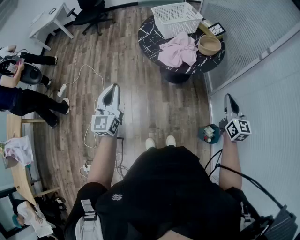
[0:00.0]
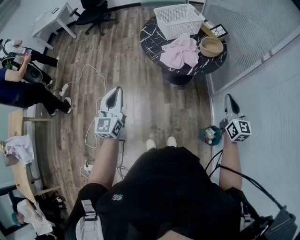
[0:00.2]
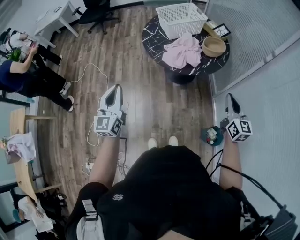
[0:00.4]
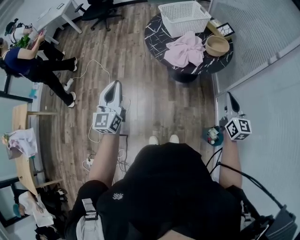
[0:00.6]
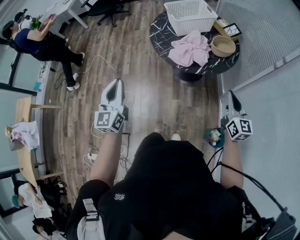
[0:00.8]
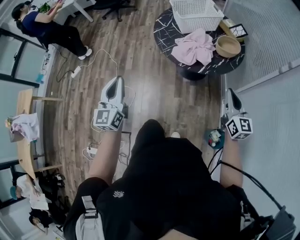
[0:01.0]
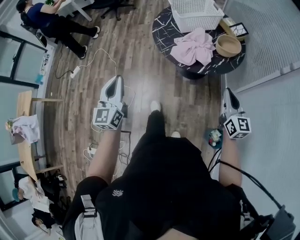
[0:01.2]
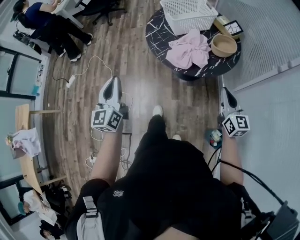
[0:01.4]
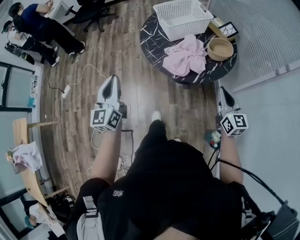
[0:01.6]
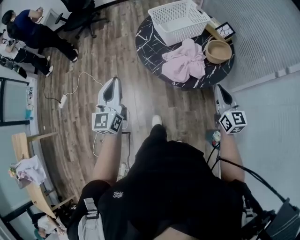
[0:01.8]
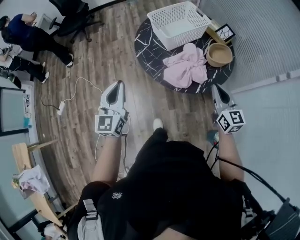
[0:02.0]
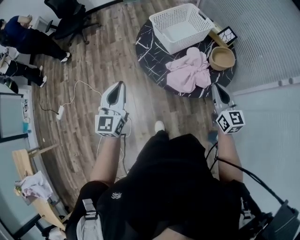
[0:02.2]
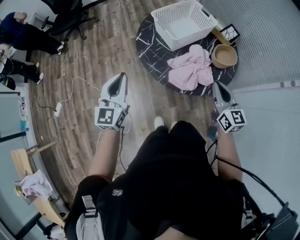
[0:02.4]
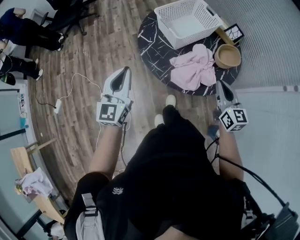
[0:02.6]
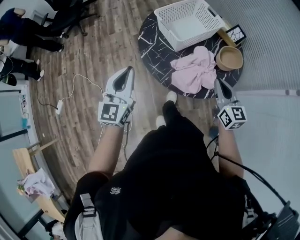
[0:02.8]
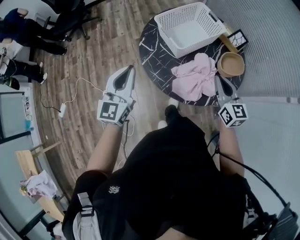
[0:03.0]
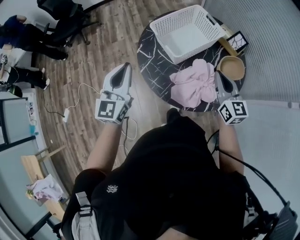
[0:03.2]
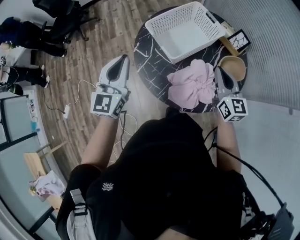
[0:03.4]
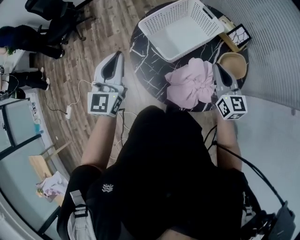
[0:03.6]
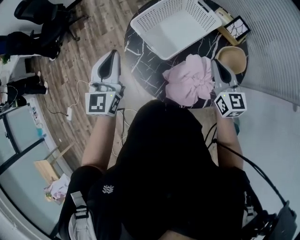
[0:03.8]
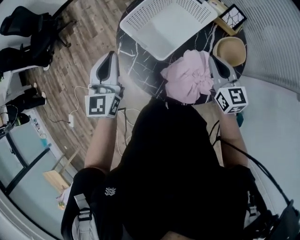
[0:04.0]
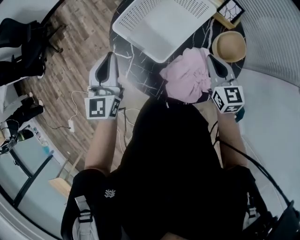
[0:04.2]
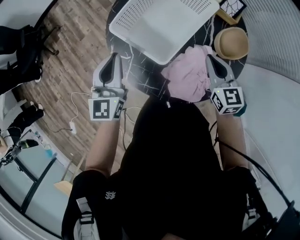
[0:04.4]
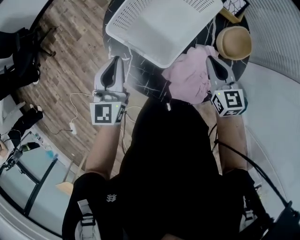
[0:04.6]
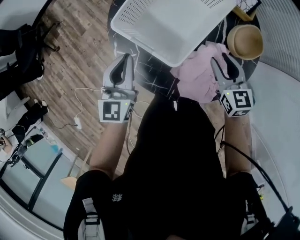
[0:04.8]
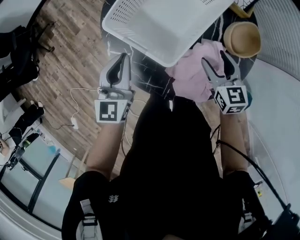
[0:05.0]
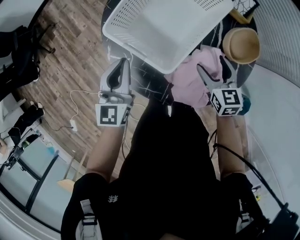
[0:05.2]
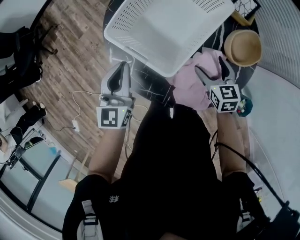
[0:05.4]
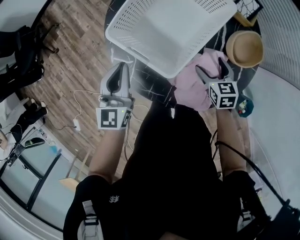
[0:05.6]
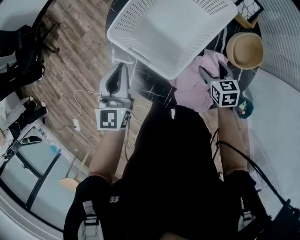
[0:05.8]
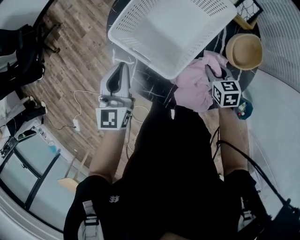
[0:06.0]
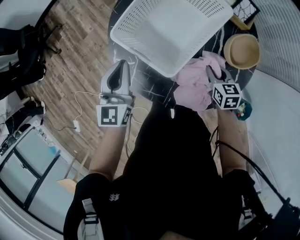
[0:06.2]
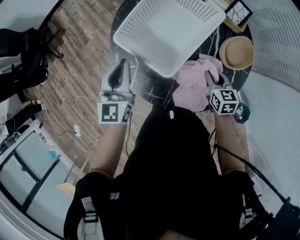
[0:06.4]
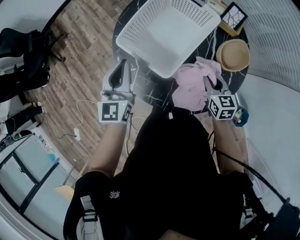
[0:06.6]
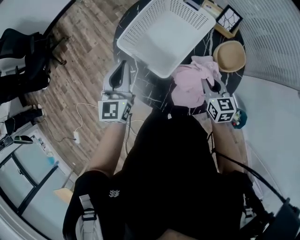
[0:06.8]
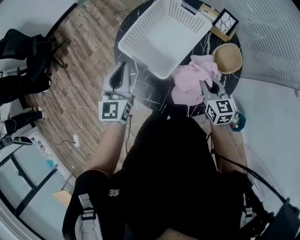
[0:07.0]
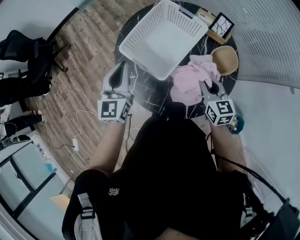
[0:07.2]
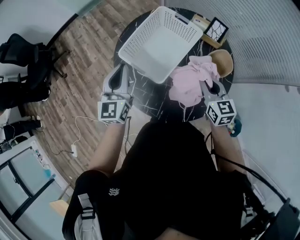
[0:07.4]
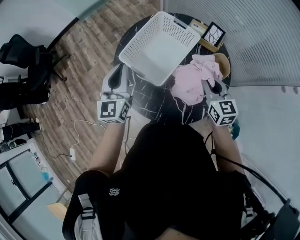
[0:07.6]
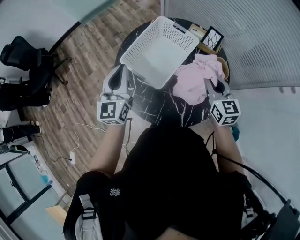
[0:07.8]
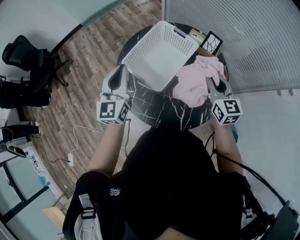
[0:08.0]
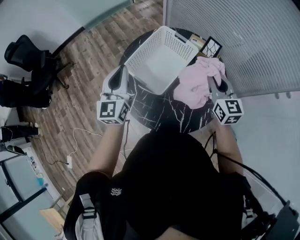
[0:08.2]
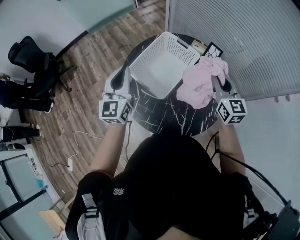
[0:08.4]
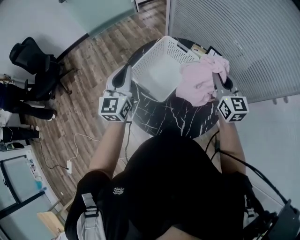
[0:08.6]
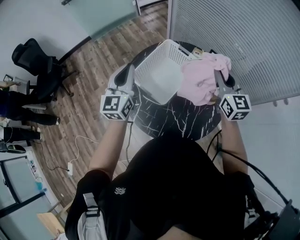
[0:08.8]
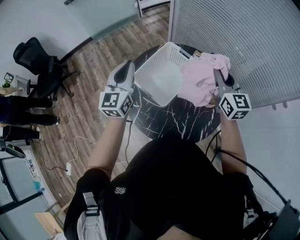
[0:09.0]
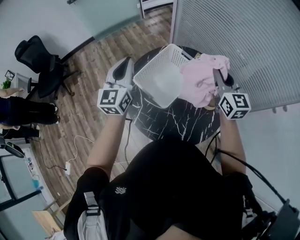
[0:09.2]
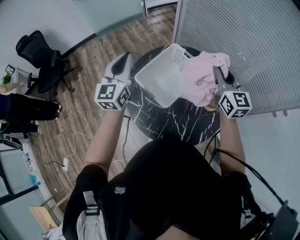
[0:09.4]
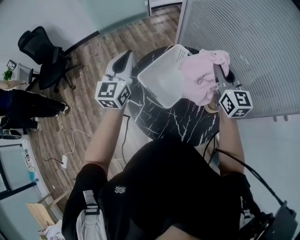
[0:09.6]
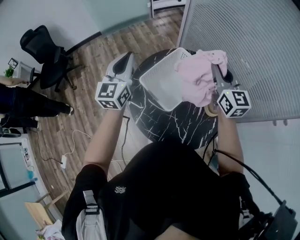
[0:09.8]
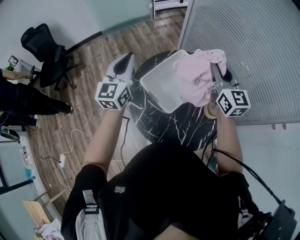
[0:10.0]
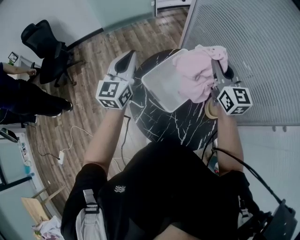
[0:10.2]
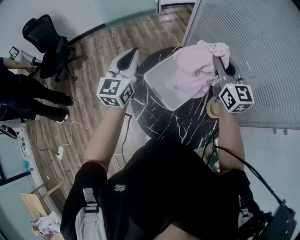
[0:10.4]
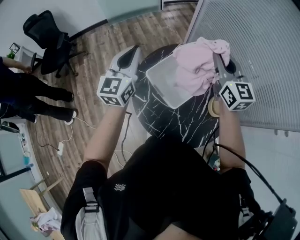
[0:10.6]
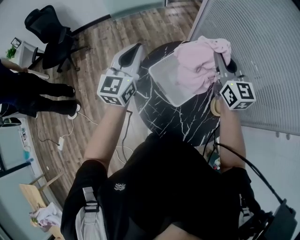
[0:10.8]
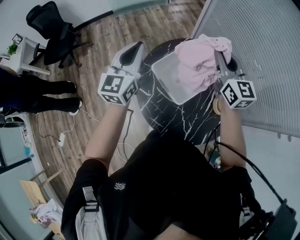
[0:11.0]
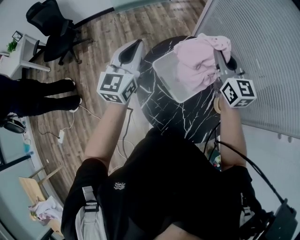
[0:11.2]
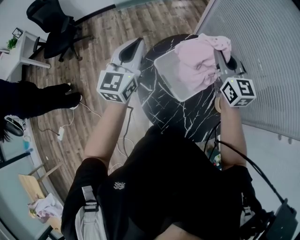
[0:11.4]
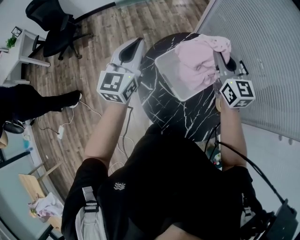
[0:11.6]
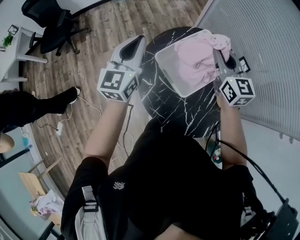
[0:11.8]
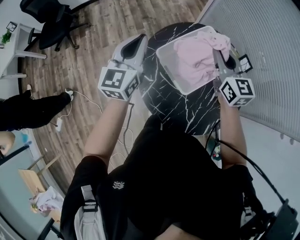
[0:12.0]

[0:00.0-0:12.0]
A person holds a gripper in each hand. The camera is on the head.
0:00.0 to 0:01.6: Both grippers move forward, about 15 cm.
0:01.6 to 0:03.0: The left gripper goes some 30 cm forward, and rotates about 20 degrees, while the right gripper shifts approximately 25 cm forward and to the left.
0:03.0 to 0:04.4: Both grippers move forward and downward, some 25 cm.
0:04.4 to 0:06.0: The left gripper heads downward, covering roughly 5 cm. Meanwhile the right gripper is displaced downward by some 15 cm, turns by approximately 30 degrees, and opens and closes again.
0:06.0 to 0:07.6: The right gripper is displaced upward by some 25 cm, and swivels approximately 30 degrees, while the left gripper shifts approximately 15 cm upward.
0:07.6 to 0:09.0: The left gripper heads upward, covering some 10 cm, while the right gripper shifts roughly 15 cm upward and forward.
0:09.0 to 0:10.4: The left gripper is displaced to the left by approximately 5 cm. The right gripper shifts some 15 cm to the left, upward and forward.
0:10.4 to 0:12.0: The right gripper shifts about 15 cm downward and to the left. Meanwhile the left gripper moves downward, some 5 cm.

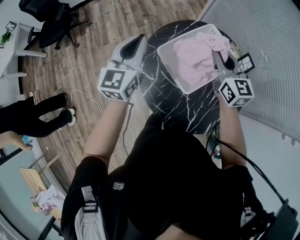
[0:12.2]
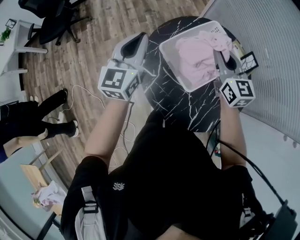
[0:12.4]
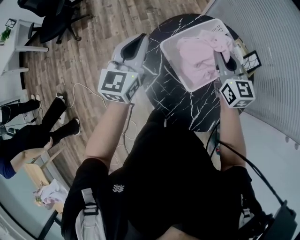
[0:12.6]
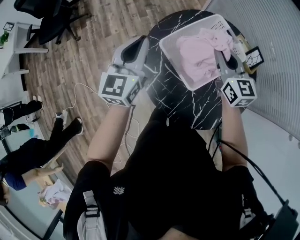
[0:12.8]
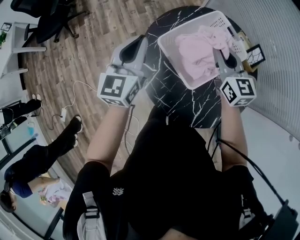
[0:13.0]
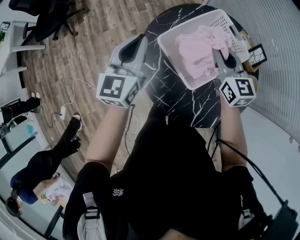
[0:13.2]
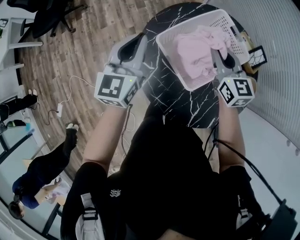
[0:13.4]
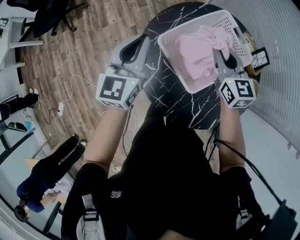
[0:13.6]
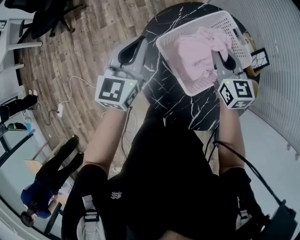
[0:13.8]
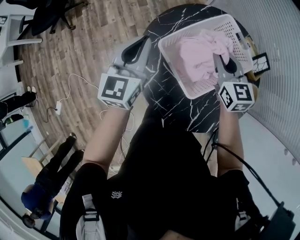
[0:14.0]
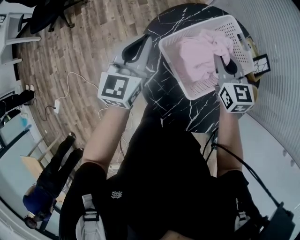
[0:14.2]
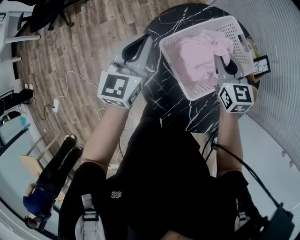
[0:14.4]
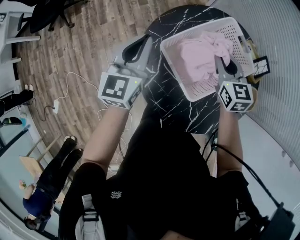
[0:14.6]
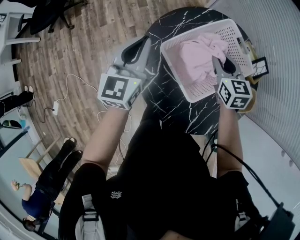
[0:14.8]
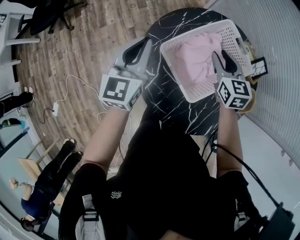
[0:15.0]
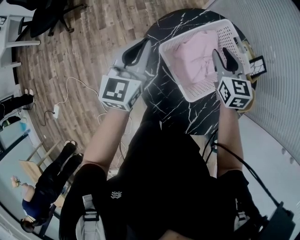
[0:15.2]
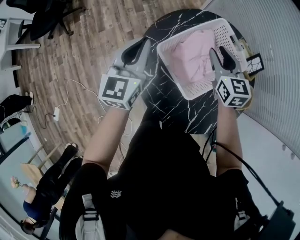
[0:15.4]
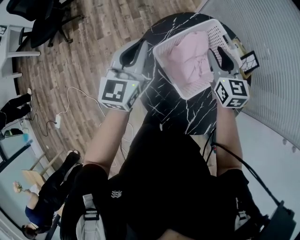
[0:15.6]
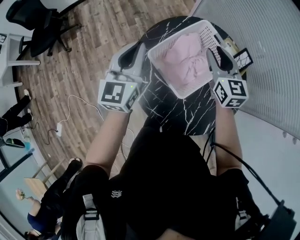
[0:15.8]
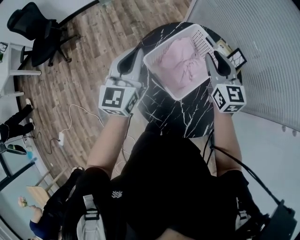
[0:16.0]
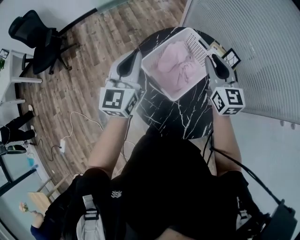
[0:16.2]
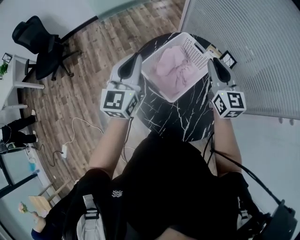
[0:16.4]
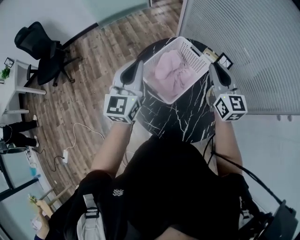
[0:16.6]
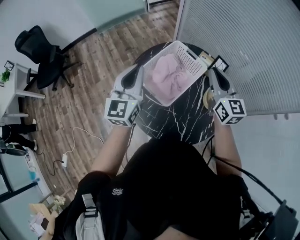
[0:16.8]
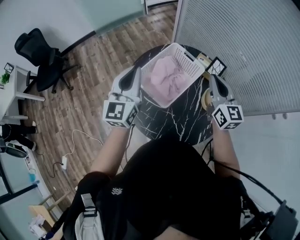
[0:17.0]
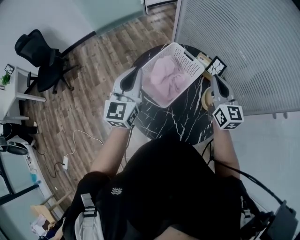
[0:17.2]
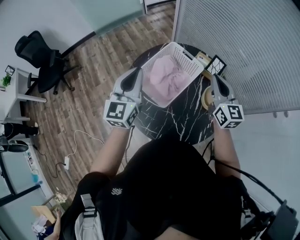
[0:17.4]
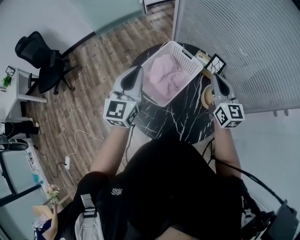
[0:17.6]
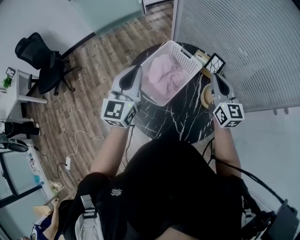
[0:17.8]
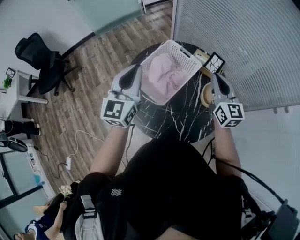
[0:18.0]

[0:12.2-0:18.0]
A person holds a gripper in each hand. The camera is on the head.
0:12.2 to 0:13.6: Both grippers travel together downward, some 10 cm.
0:13.6 to 0:15.0: The right gripper ends up about 5 cm from where it was.
0:15.0 to 0:16.6: The two grippers go roughly 20 cm upward, to the right and backward. The right gripper swivels roughly 30 degrees.
0:16.6 to 0:18.0: The grippers both shift to the right by approximately 5 cm.

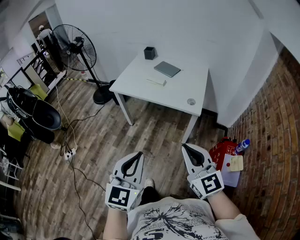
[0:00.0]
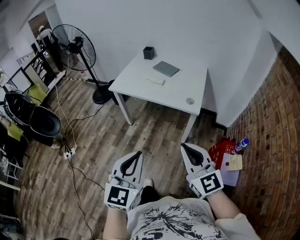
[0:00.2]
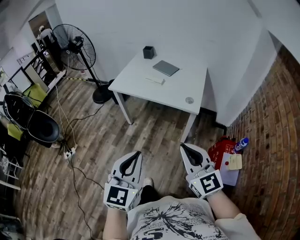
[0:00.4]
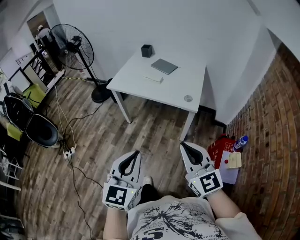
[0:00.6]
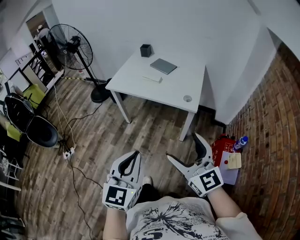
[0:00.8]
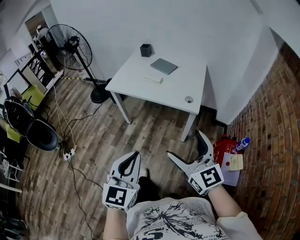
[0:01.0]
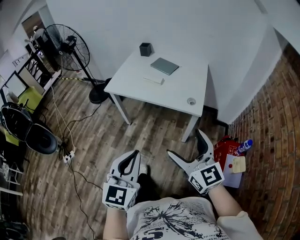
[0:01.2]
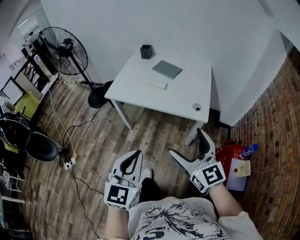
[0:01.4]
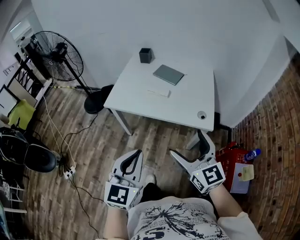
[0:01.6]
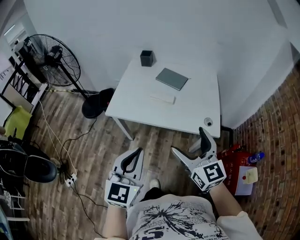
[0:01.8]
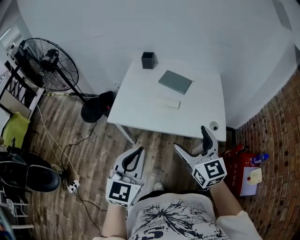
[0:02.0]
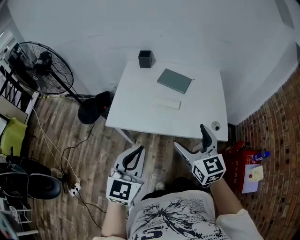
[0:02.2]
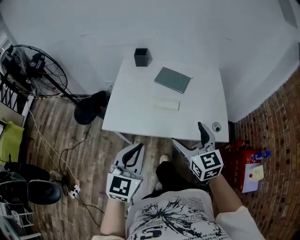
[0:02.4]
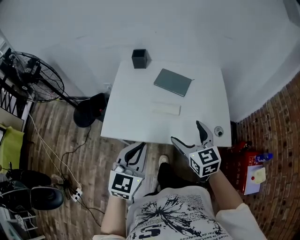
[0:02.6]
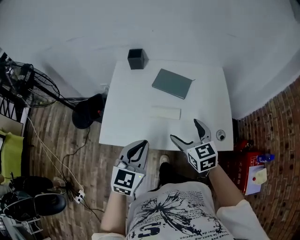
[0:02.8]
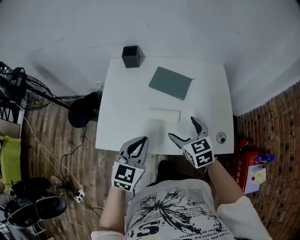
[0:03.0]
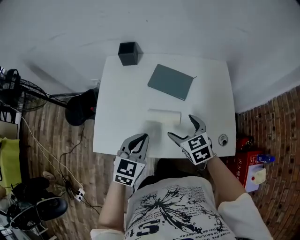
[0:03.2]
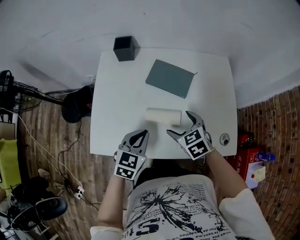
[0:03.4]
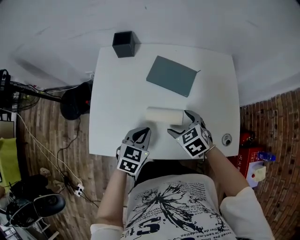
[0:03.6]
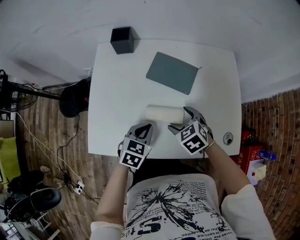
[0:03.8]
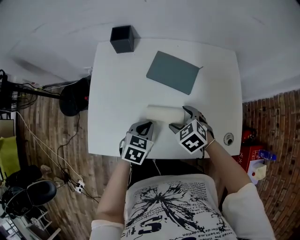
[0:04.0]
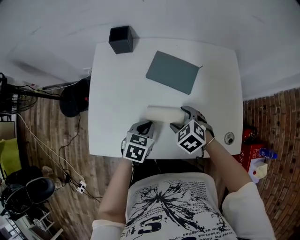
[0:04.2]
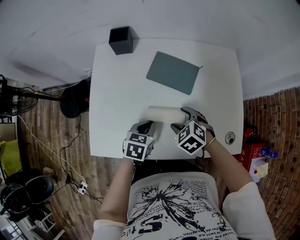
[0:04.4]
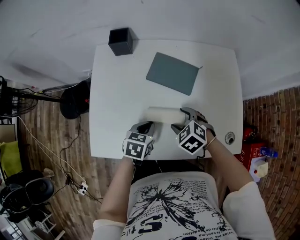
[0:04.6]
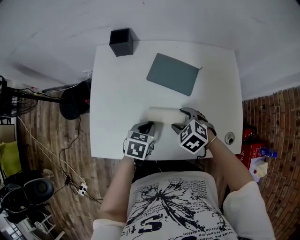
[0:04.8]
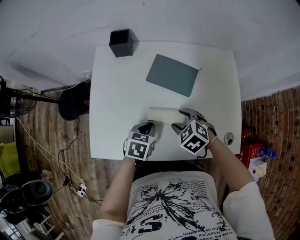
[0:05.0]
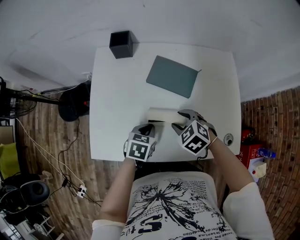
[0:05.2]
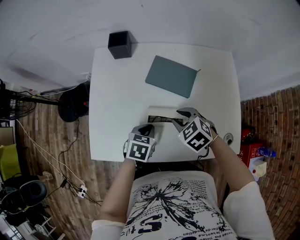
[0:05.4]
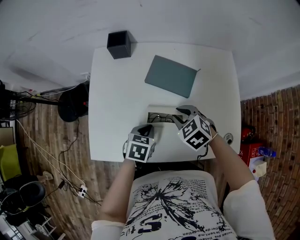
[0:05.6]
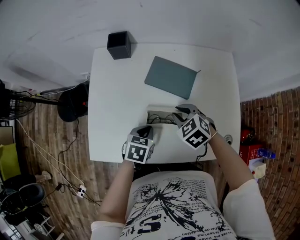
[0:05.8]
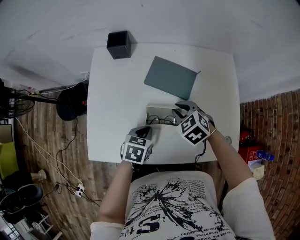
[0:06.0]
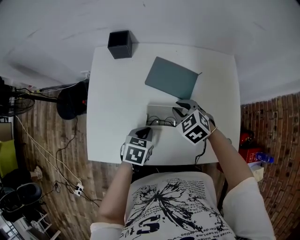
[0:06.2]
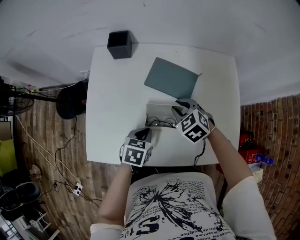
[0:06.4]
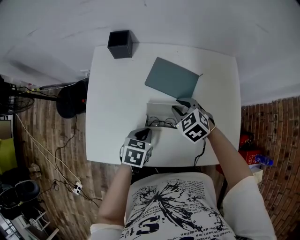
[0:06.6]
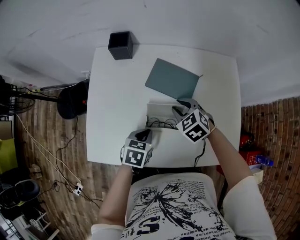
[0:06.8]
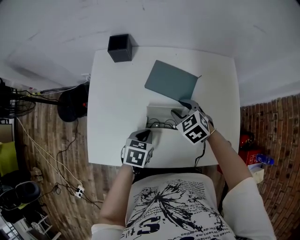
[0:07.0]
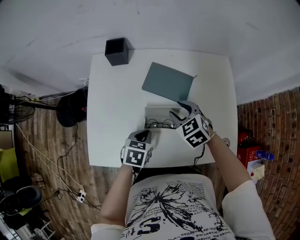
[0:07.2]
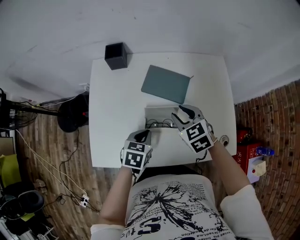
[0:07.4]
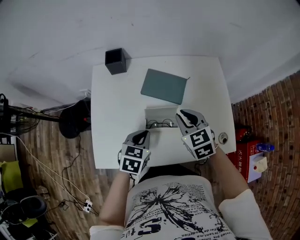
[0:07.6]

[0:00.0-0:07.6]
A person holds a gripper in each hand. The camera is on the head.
0:00.0 to 0:01.6: Both grippers move forward, some 25 cm. The right gripper opens its fingers.
0:01.6 to 0:03.0: Both grippers are carried forward, some 40 cm. The right gripper travels downward by about 20 cm, and tips its fingers downward by approximately 30 degrees. The left gripper rotates roughly 30 degrees.
0:03.0 to 0:04.6: The grippers both shift downward and forward by some 20 cm. The right gripper turns by approximately 40 degrees. The left gripper changes its angle by some 30 degrees.
0:04.6 to 0:06.0: The right gripper travels forward by some 5 cm, and closes.
0:06.0 to 0:07.6: The two grippers go roughly 10 cm upward. The right gripper swivels about 30 degrees.
